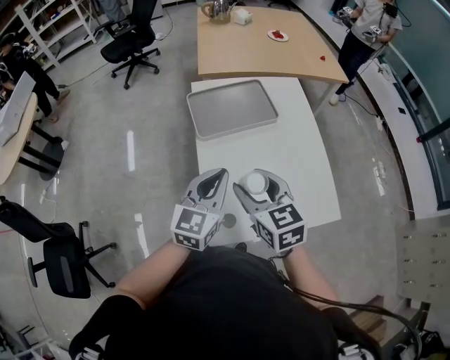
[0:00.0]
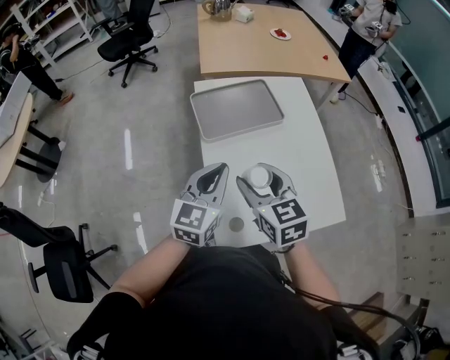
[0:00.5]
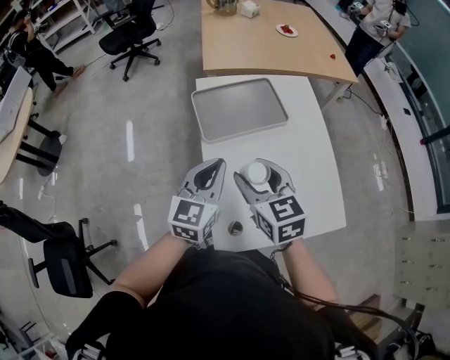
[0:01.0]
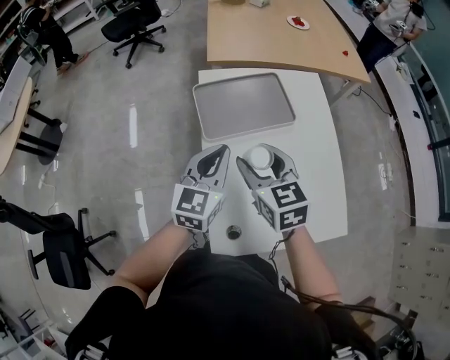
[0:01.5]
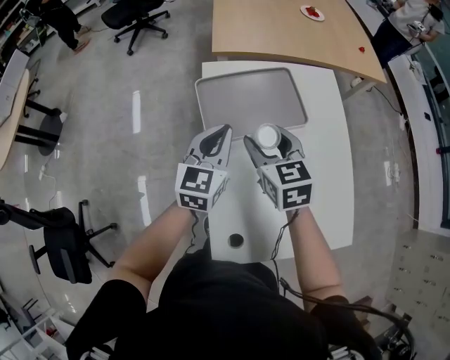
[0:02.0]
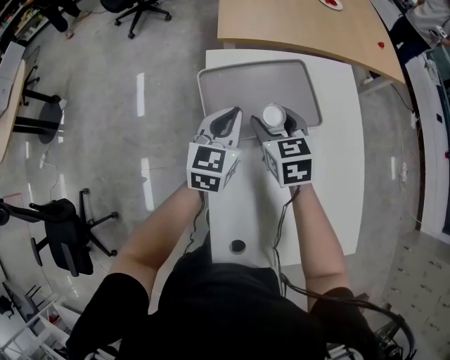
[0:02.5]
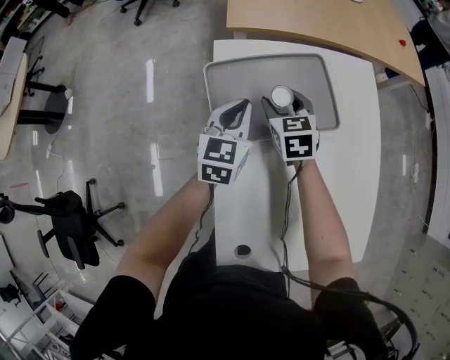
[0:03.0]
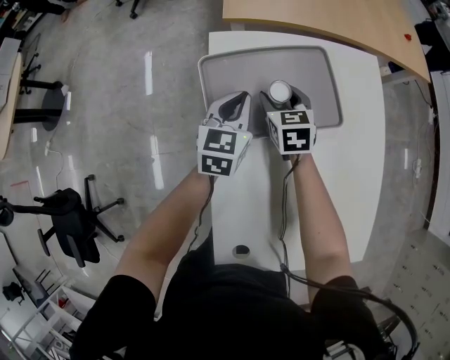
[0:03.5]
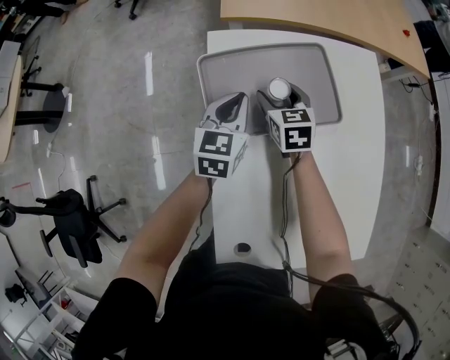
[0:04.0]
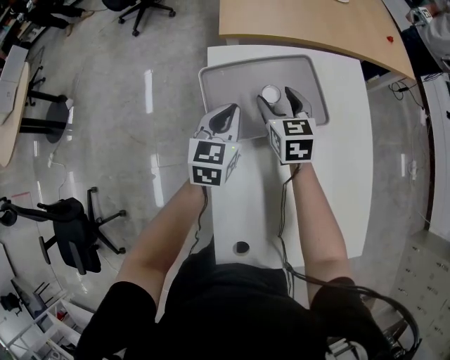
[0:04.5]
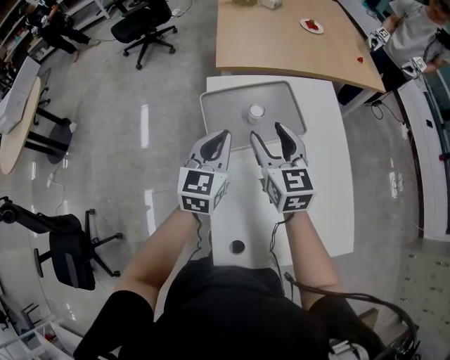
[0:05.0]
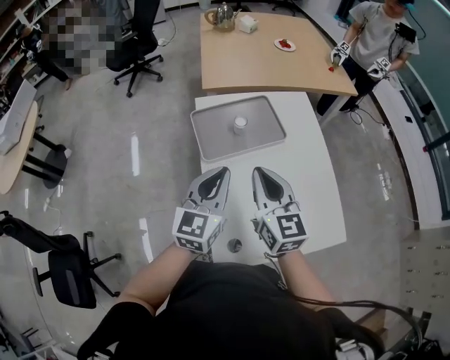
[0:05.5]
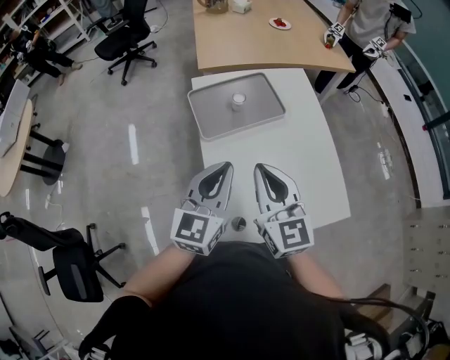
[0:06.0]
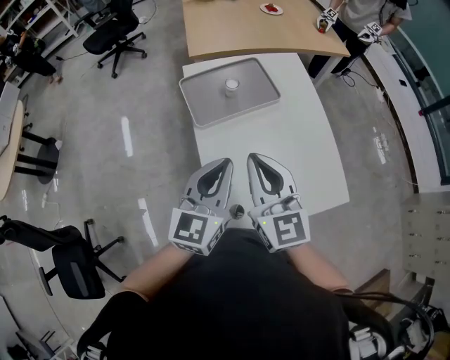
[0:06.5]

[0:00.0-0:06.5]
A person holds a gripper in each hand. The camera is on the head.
0:00.0 to 0:02.0: Both grippers travel together forward, about 25 cm.
0:02.0 to 0:04.5: Both grippers travel together forward and downward, approximately 15 cm.
0:04.5 to 0:06.5: Both grippers travel together backward and upward, approximately 40 cm. The right gripper changes its angle by about 20 degrees, and closes up. The left gripper rotates about 20 degrees.

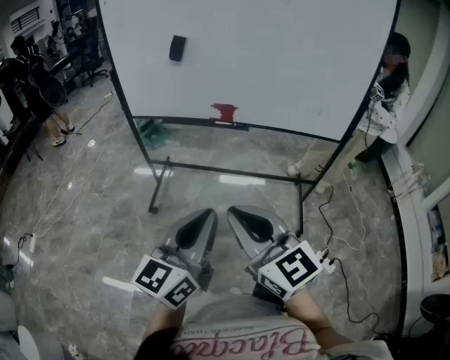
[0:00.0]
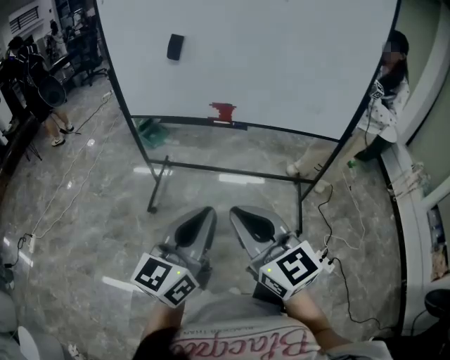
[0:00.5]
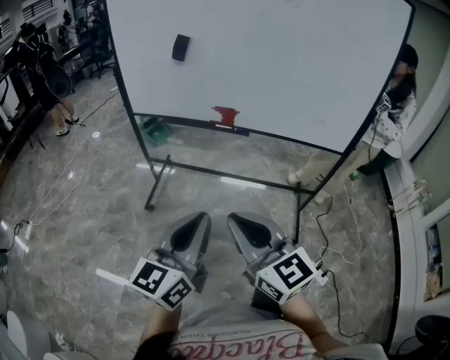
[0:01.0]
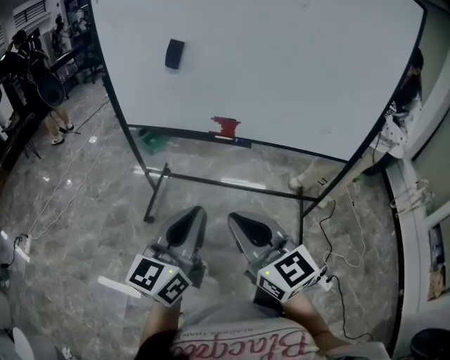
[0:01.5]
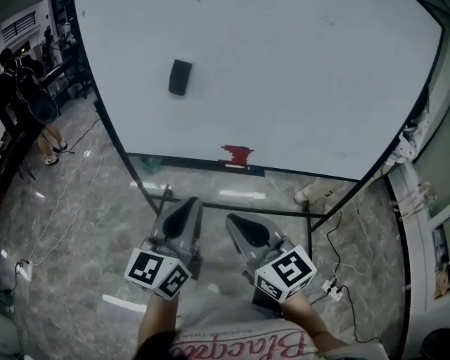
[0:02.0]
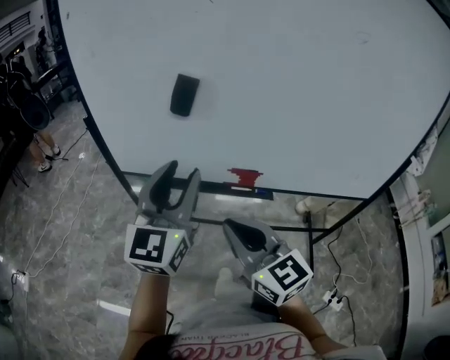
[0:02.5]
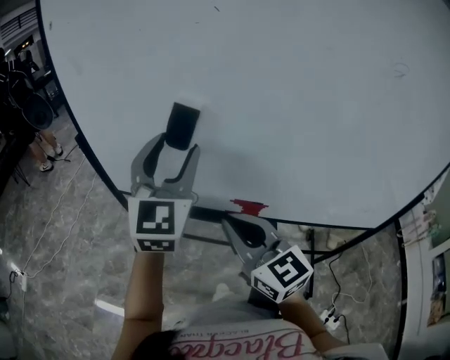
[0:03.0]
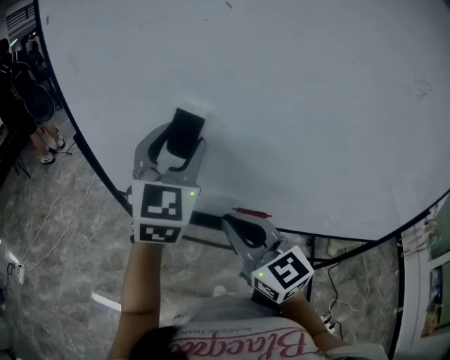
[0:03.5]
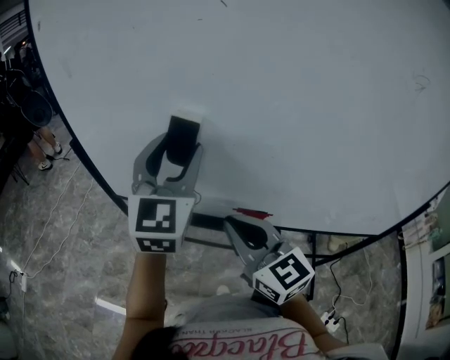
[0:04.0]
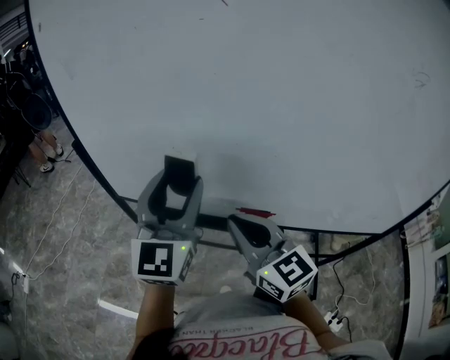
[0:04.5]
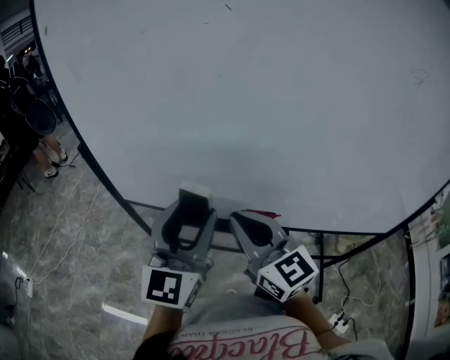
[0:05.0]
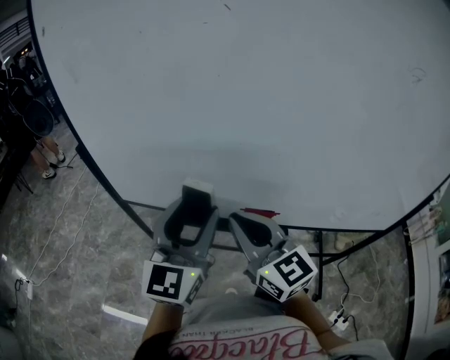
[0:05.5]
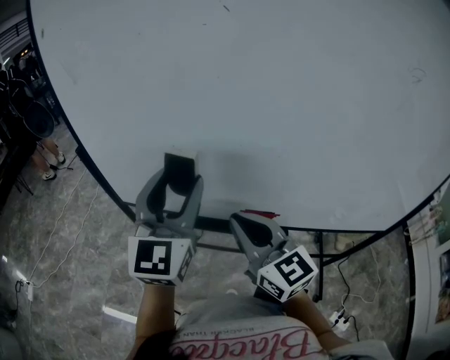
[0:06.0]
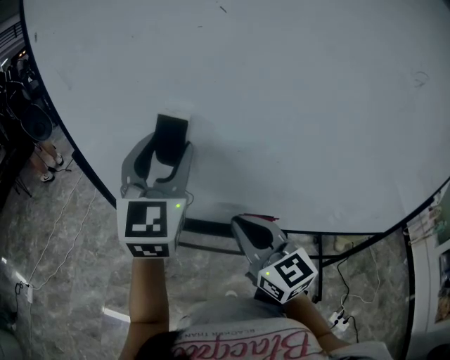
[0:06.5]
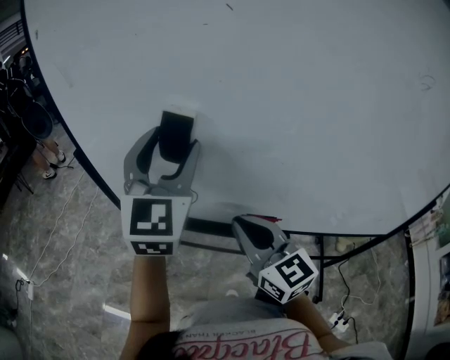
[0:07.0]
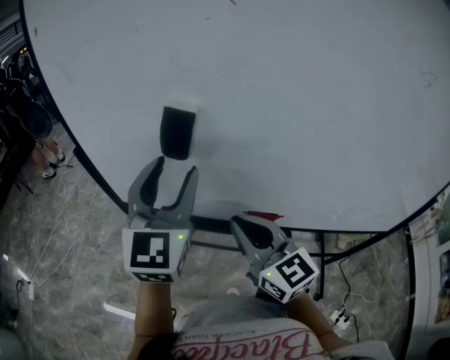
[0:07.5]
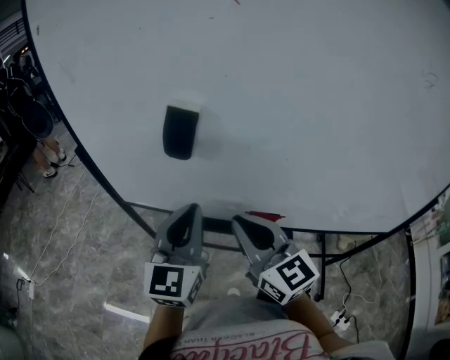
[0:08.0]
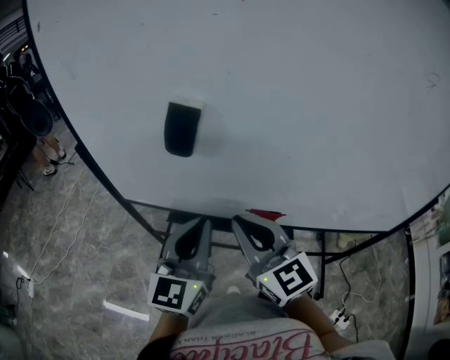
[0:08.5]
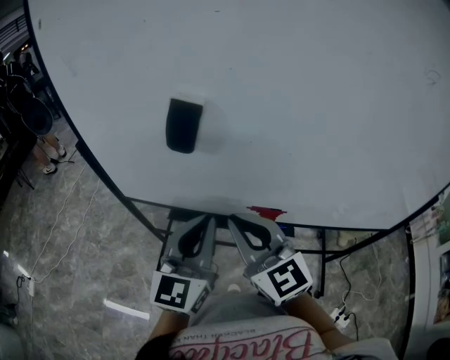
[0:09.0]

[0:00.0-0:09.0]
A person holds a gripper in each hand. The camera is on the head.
0:00.0 to 0:02.0: Both grippers travel together forward, roughly 25 cm.
0:02.0 to 0:04.5: Both grippers move forward, roughly 25 cm. The left gripper changes its angle by about 30 degrees, and opens.
0:04.5 to 0:07.0: The left gripper shifts about 10 cm upward and forward.
0:07.0 to 0:09.0: The left gripper goes about 20 cm downward and backward, changes its angle by approximately 30 degrees, and closes up.

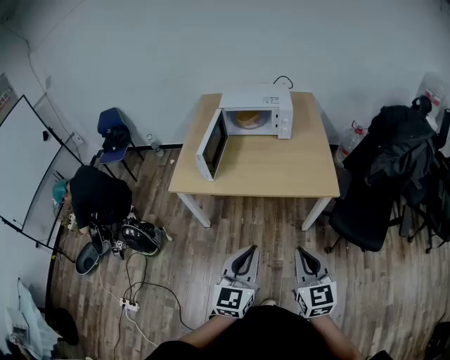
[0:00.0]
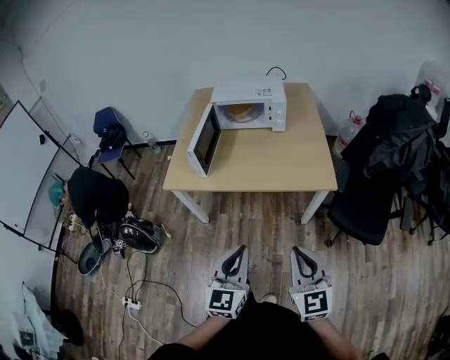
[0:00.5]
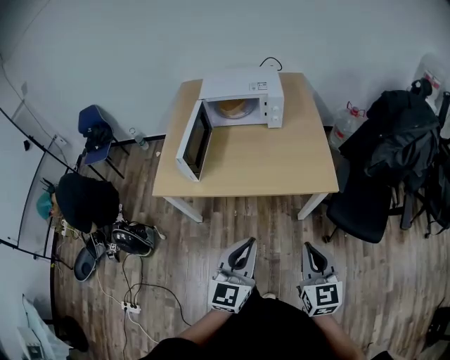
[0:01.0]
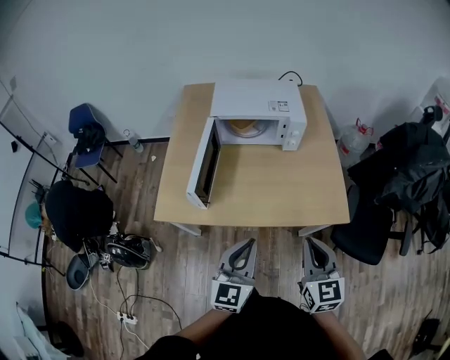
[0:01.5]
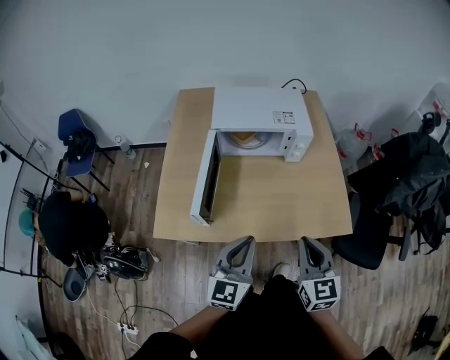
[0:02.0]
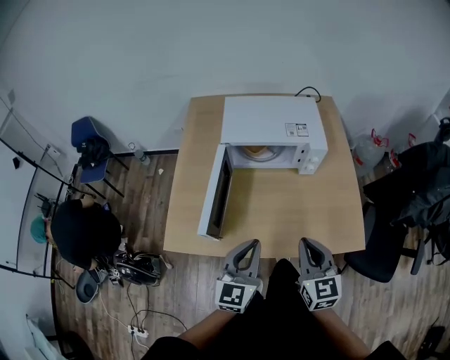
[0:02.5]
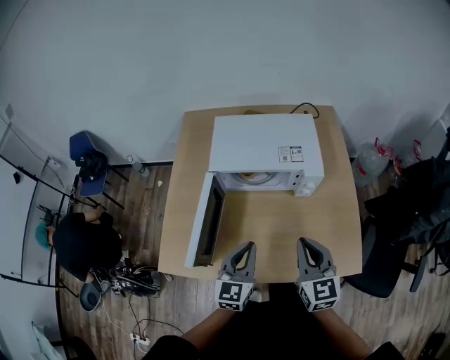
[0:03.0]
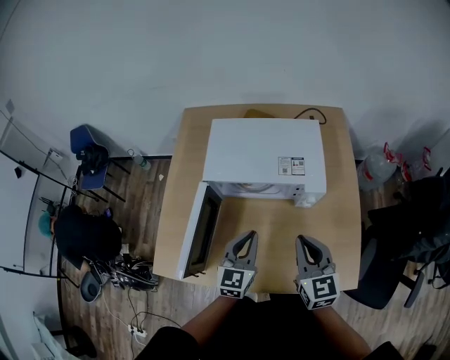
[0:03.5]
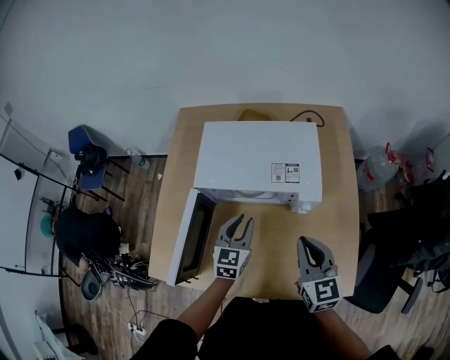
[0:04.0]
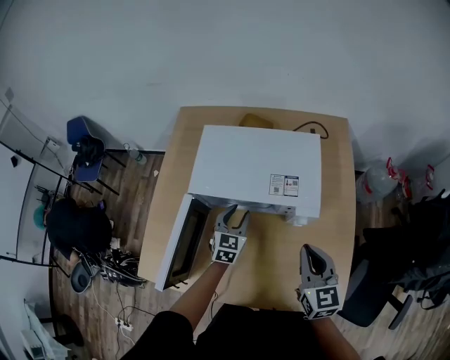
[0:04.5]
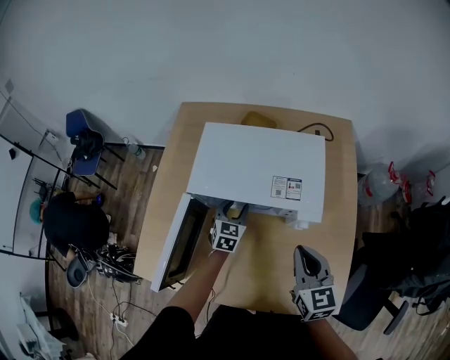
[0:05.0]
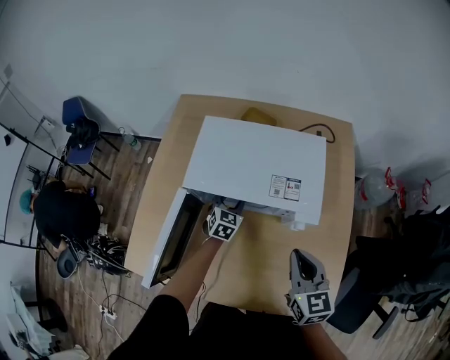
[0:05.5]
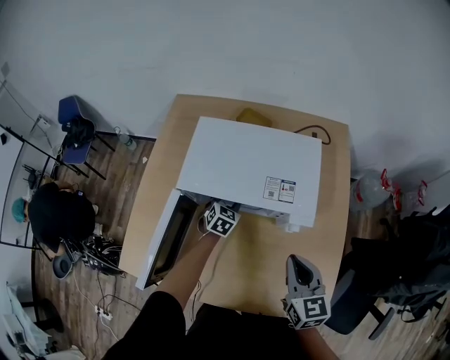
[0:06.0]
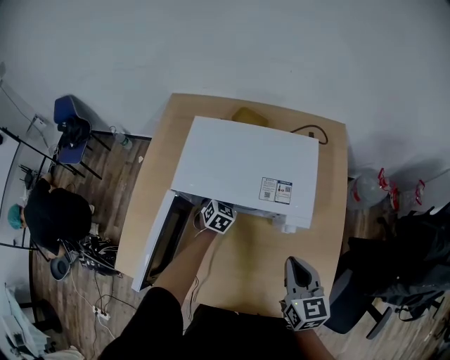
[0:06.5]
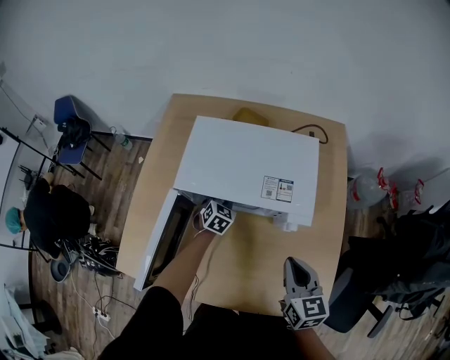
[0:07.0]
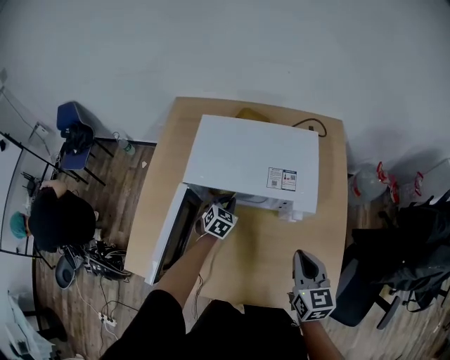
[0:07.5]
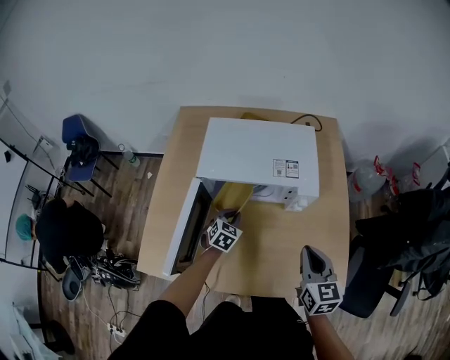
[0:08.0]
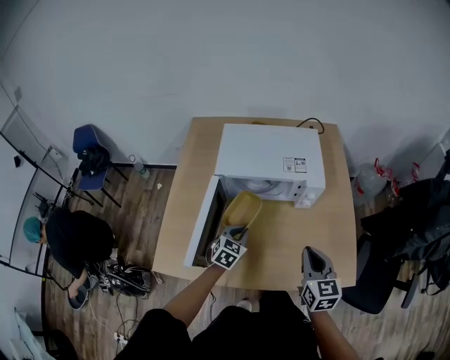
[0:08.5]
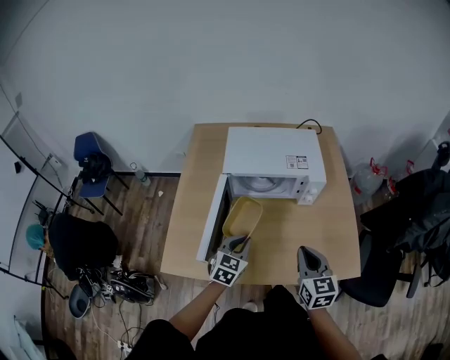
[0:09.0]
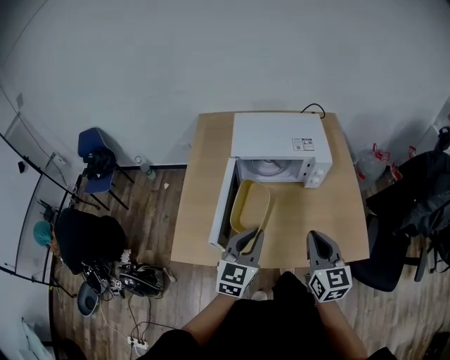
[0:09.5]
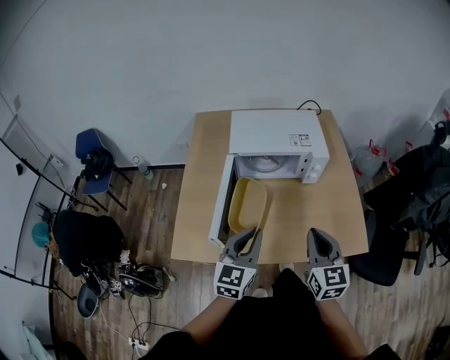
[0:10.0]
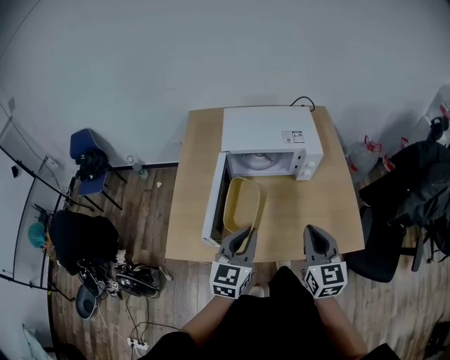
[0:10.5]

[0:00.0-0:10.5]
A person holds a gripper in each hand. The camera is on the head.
0:00.0 to 0:02.0: The grippers both shift forward by some 30 cm.
0:02.0 to 0:04.0: The two grippers go approximately 30 cm forward. The left gripper rotates some 20 degrees.
0:04.0 to 0:06.5: The left gripper goes about 20 cm forward and downward, and swivels about 20 degrees. Meanwhile the right gripper ends up about 5 cm from where it was.
0:06.5 to 0:08.5: The right gripper travels backward by some 15 cm; the left gripper is displaced backward by about 25 cm.
0:08.5 to 0:10.5: The right gripper heads backward and upward, covering about 10 cm. Meanwhile the left gripper shifts roughly 25 cm upward and backward, and rotates roughly 30 degrees.

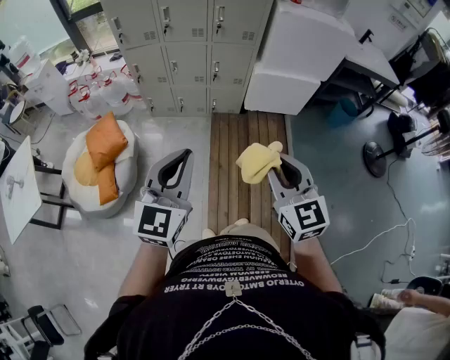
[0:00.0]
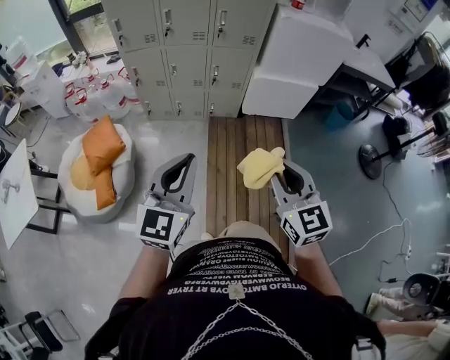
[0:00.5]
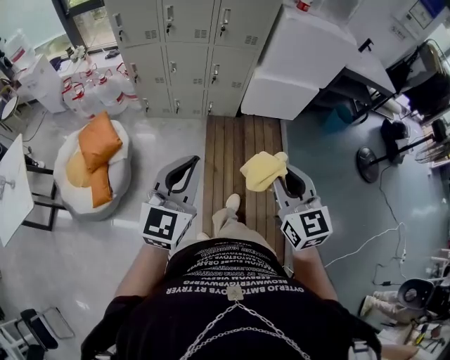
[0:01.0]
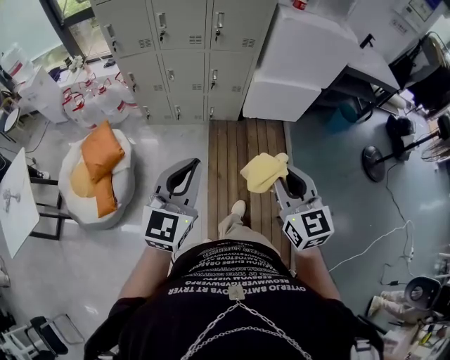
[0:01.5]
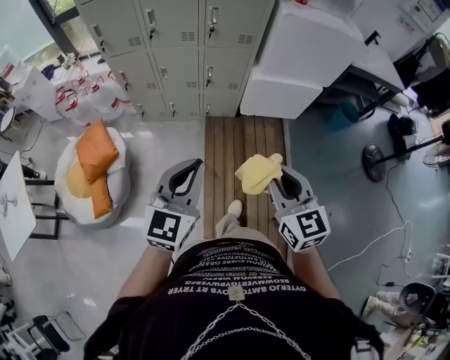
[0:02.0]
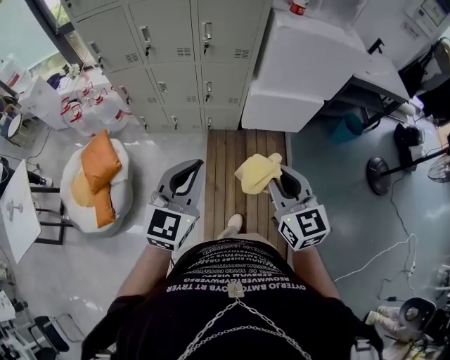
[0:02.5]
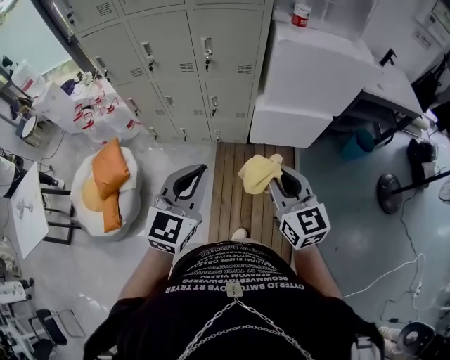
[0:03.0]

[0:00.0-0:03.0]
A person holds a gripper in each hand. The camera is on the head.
0:00.0 to 0:01.5: The grippers both shift forward by about 5 cm.
0:01.5 to 0:03.0: The two grippers go about 25 cm forward and to the right.
